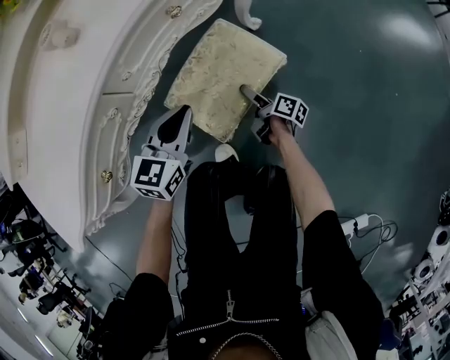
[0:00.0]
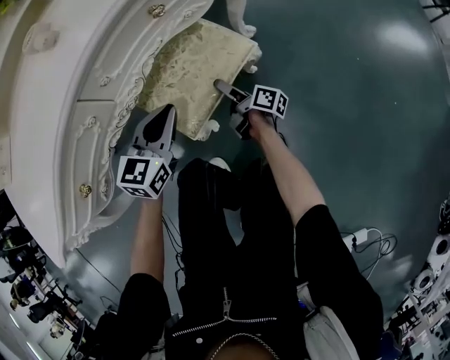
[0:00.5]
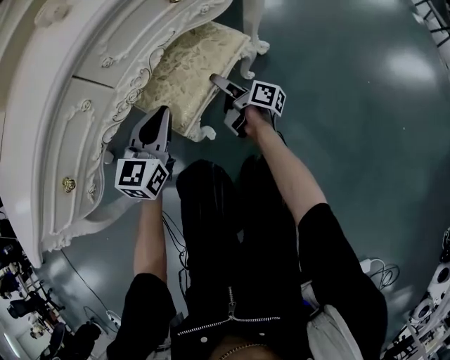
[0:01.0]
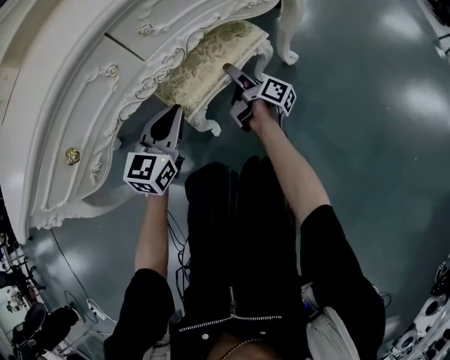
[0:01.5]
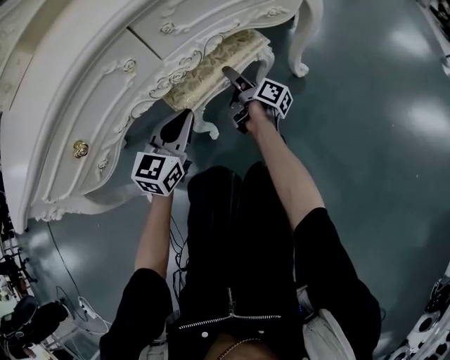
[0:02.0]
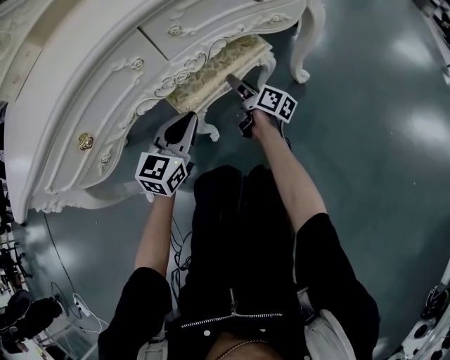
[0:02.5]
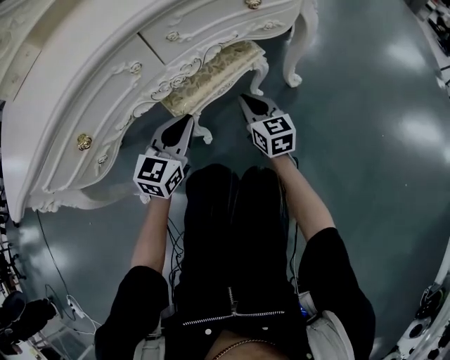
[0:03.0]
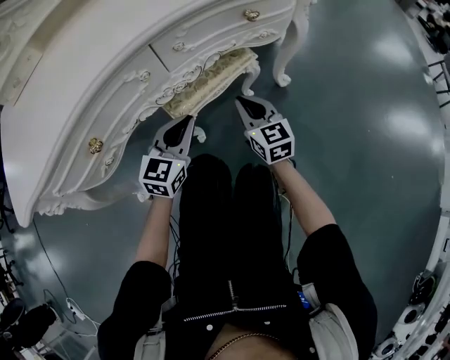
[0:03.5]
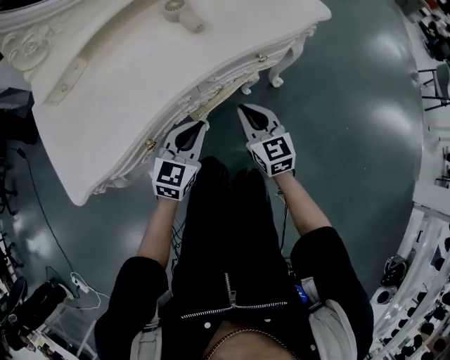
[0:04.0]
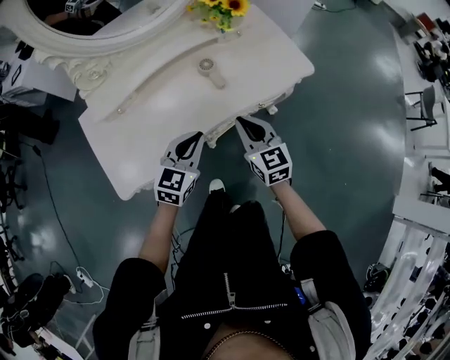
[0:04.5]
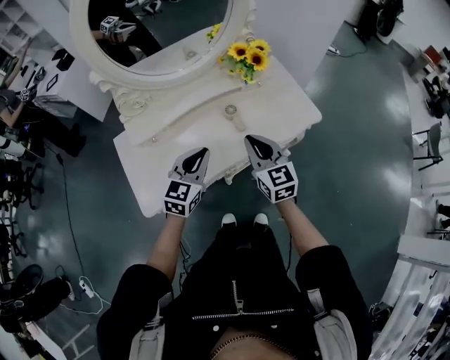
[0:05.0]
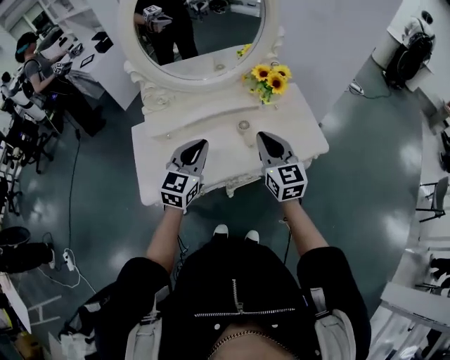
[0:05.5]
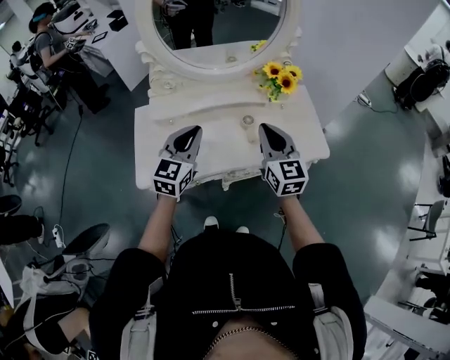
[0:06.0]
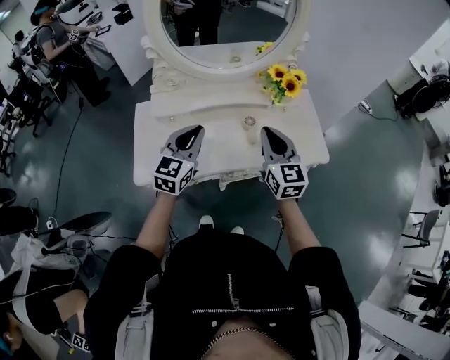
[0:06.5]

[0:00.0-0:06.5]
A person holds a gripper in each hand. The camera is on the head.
0:00.0 to 0:02.0: The left gripper shifts approximately 15 cm downward and to the left, and swivels about 20 degrees. Meanwhile the right gripper moves forward and to the left, about 25 cm, and turns by about 20 degrees.
0:02.0 to 0:04.5: The two grippers go approximately 40 cm upward. The right gripper rolls counterclockwise, seen from behind, by roughly 80 degrees, and closes up.
0:04.5 to 0:06.5: The left gripper shifts roughly 20 cm upward and to the left, and changes its angle by some 30 degrees. The right gripper is displaced upward and forward by approximately 20 cm.

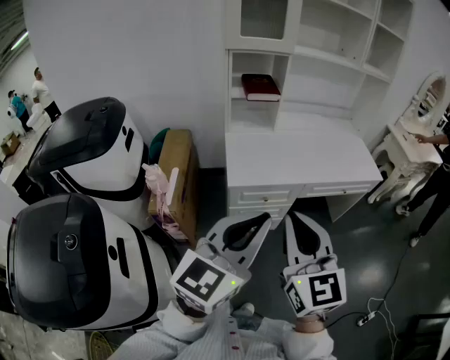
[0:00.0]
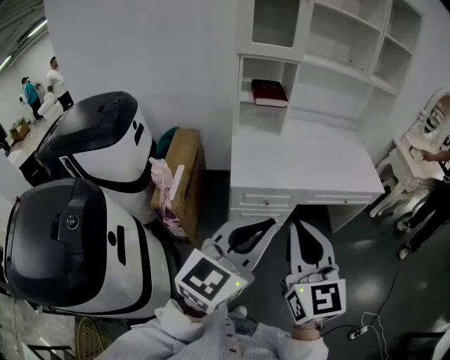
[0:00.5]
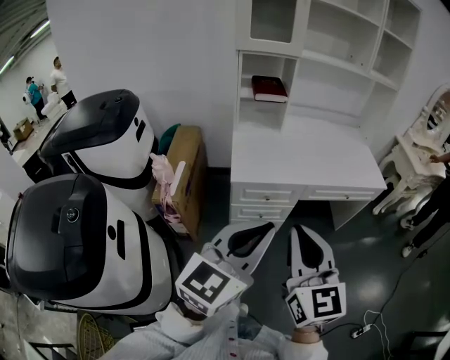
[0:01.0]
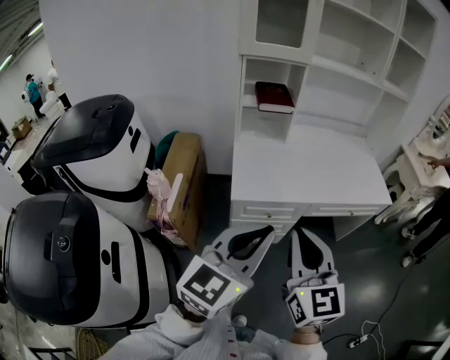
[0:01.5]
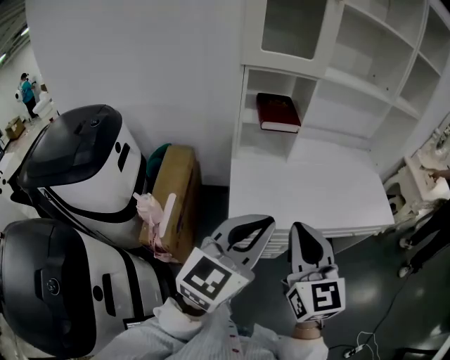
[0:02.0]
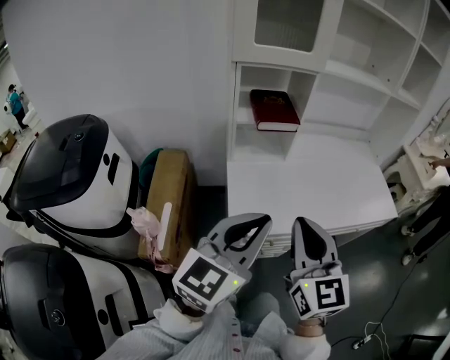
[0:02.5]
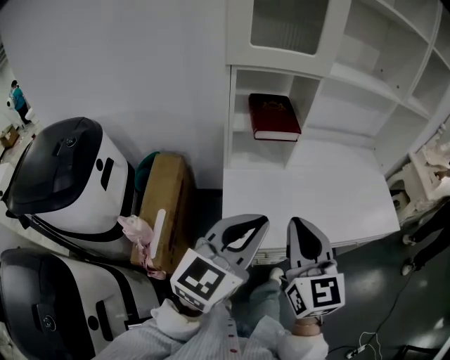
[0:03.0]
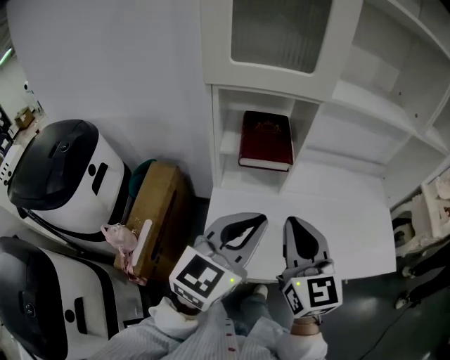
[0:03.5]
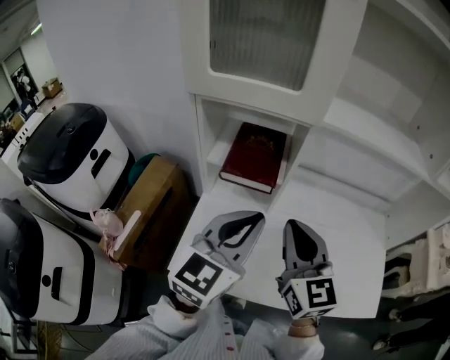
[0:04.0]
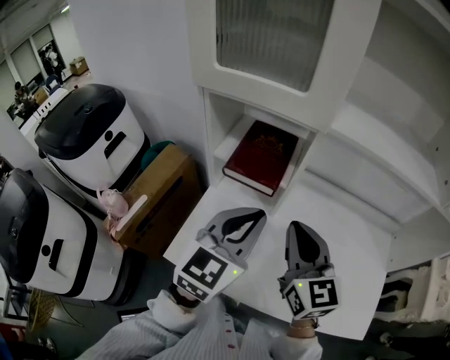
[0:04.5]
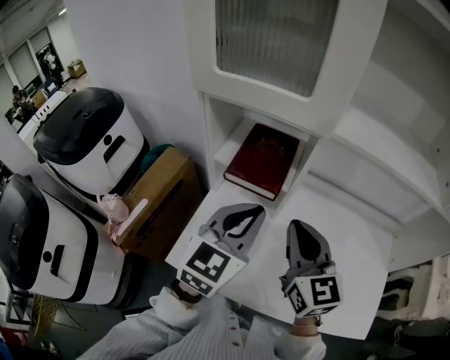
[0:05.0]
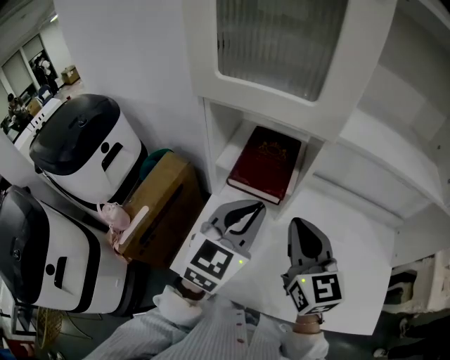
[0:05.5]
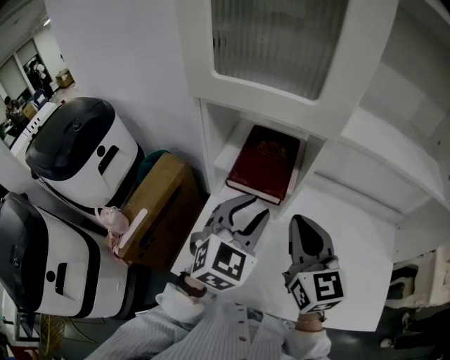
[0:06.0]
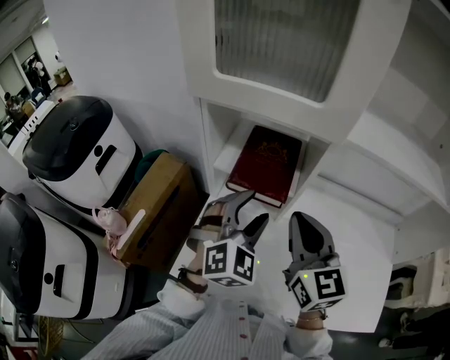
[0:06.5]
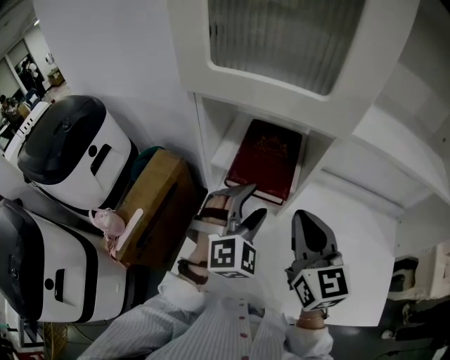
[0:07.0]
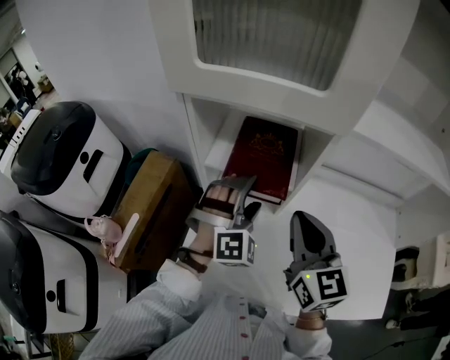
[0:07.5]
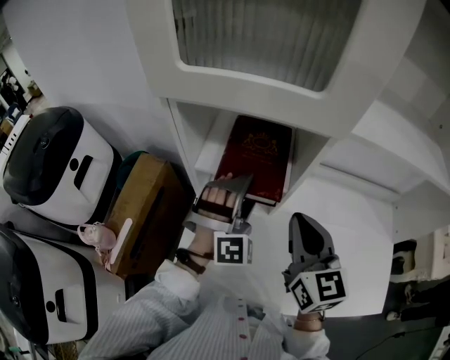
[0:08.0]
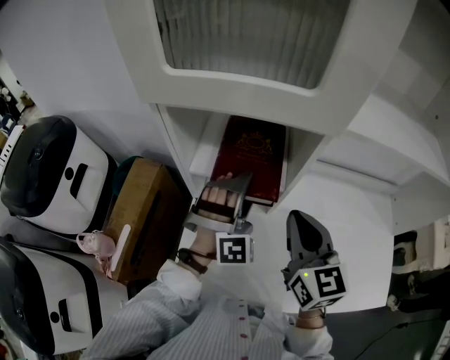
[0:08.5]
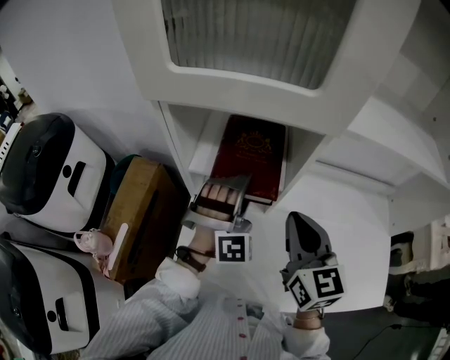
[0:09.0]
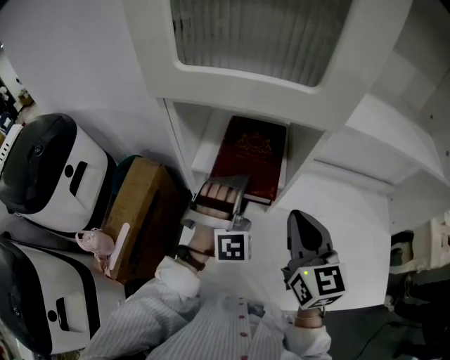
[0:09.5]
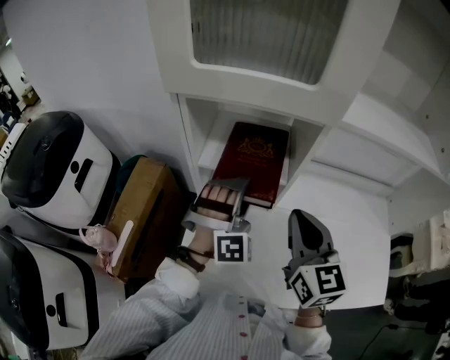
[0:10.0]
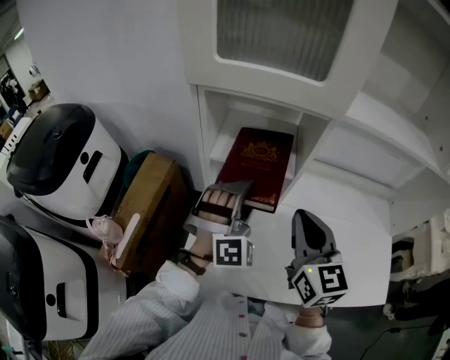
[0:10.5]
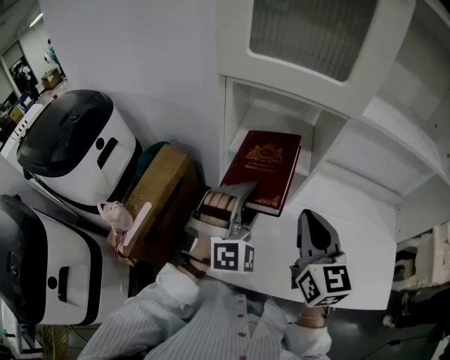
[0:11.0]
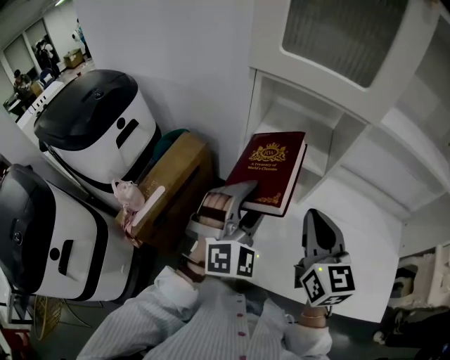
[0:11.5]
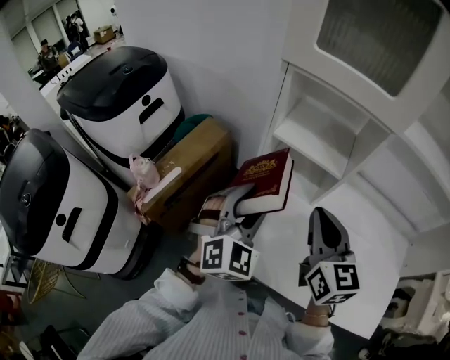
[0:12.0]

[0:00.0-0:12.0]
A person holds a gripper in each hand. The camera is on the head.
0:00.0 to 0:02.0: Both grippers travel together forward, approximately 20 cm.
0:02.0 to 0:04.0: Both grippers travel together forward, roughly 35 cm.
0:04.0 to 0:06.0: The left gripper shifts about 10 cm forward and downward, and rotates about 30 degrees; the right gripper shifts about 5 cm forward.
0:06.0 to 0:08.0: The left gripper moves forward and downward, roughly 15 cm, twists approximately 50 degrees clockwise, seen from behind, and opens.
0:08.0 to 0:10.0: The grippers make only small movements.
0:10.0 to 0:12.0: The right gripper travels to the left and backward by approximately 10 cm. The left gripper moves backward and to the left, some 20 cm, and swivels approximately 40 degrees.

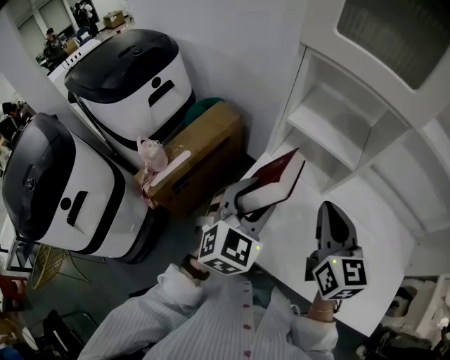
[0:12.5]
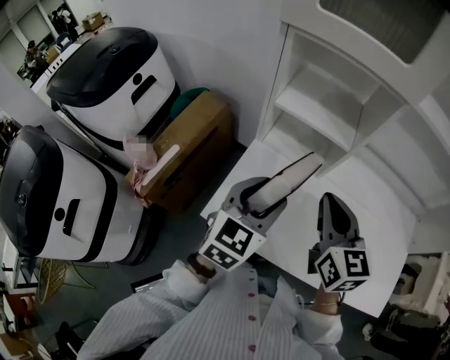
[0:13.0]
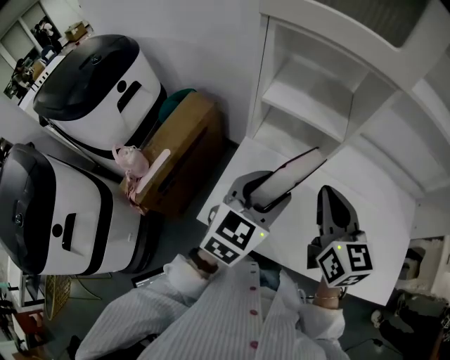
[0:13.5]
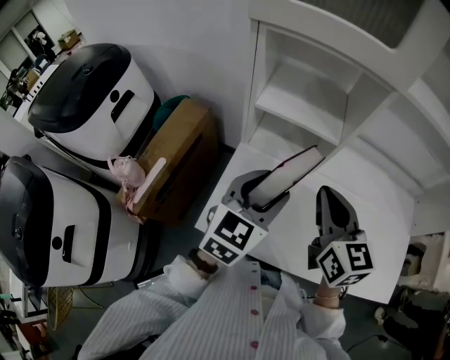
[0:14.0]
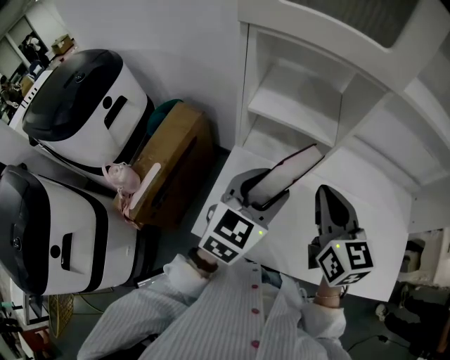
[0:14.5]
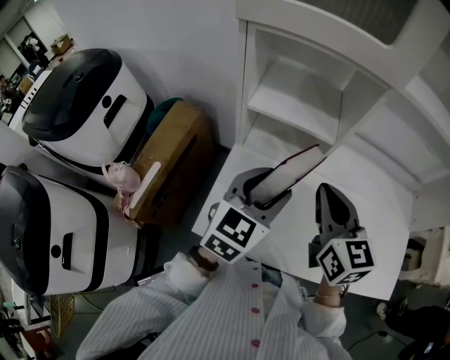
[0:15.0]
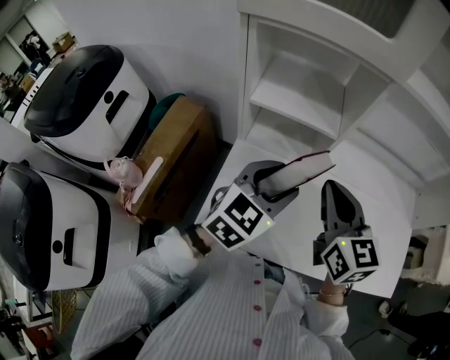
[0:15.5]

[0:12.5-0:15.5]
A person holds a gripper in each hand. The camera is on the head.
0:12.5 to 0:14.0: The left gripper moves to the right, approximately 5 cm, and changes its angle by approximately 30 degrees.
0:14.0 to 0:15.5: There are only small adjustments of the grippers.

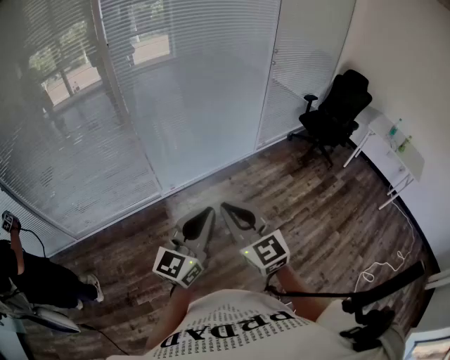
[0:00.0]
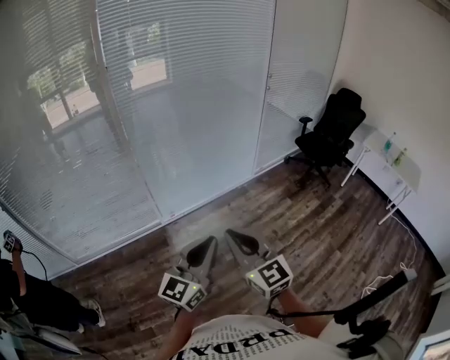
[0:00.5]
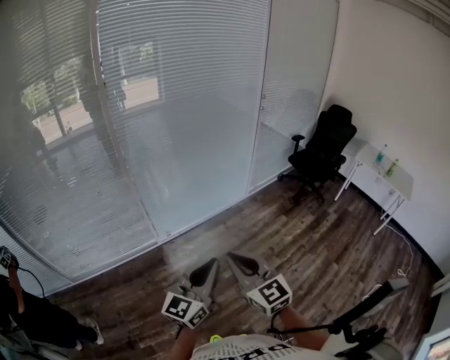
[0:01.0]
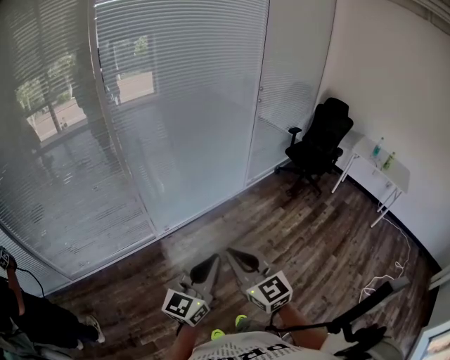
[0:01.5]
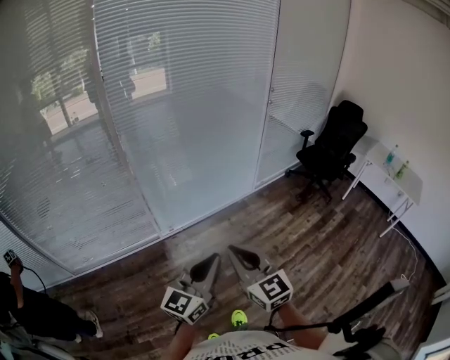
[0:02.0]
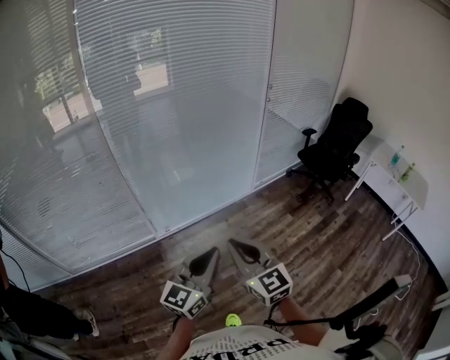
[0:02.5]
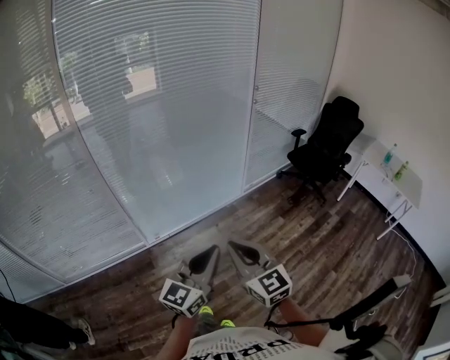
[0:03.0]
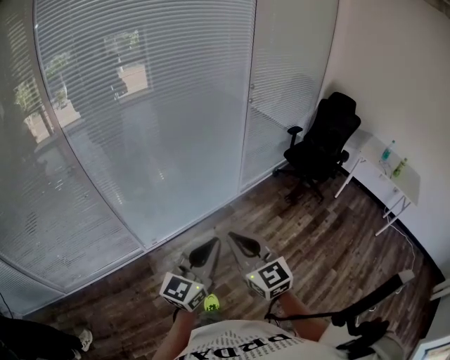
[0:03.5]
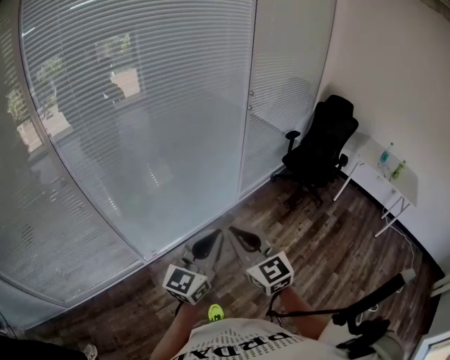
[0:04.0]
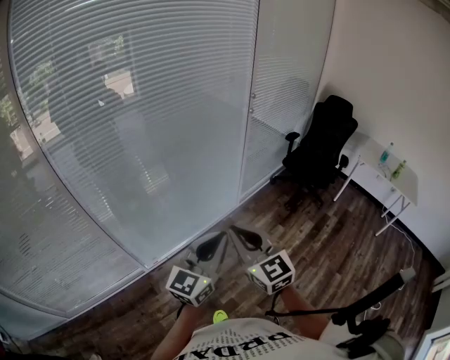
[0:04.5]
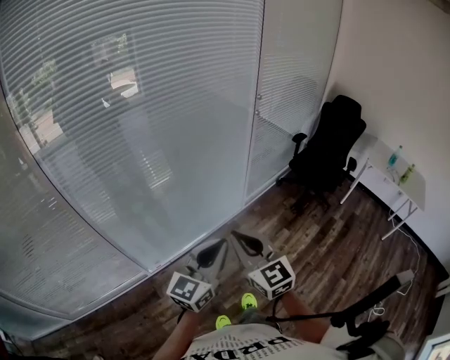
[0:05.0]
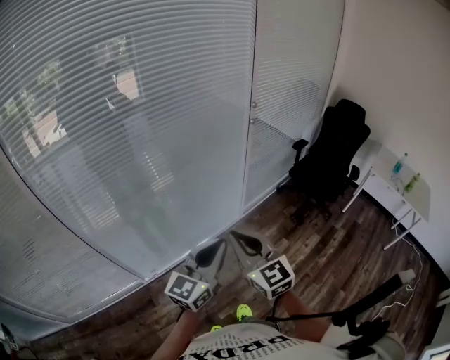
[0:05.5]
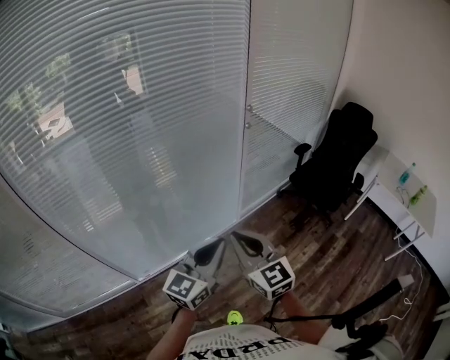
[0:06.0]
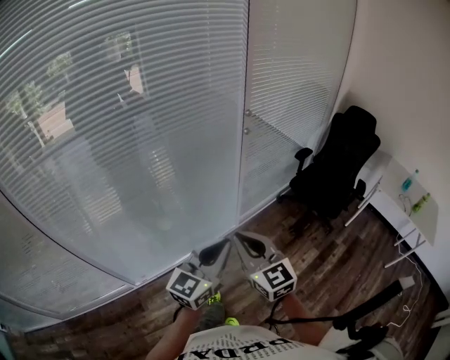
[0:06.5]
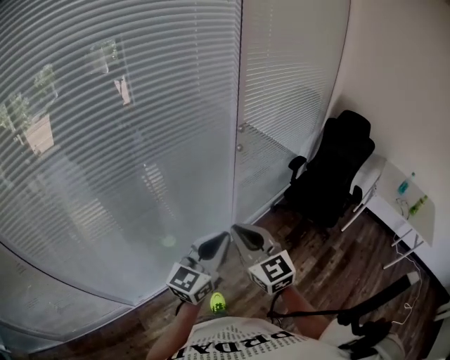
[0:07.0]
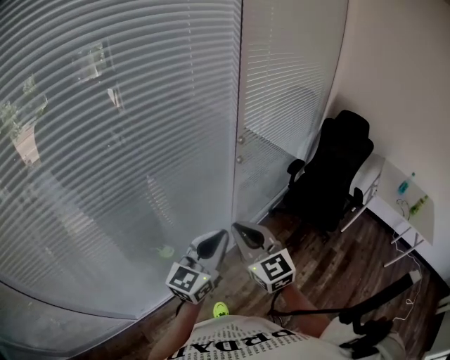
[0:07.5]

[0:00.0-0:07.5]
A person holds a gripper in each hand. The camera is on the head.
0:00.0 to 0:02.0: The two grippers go about 5 cm forward.
0:02.0 to 0:04.0: The two grippers go roughly 30 cm forward.
0:04.0 to 0:05.5: The grippers both shift forward by approximately 25 cm.
0:05.5 to 0:07.5: Both grippers travel together forward, roughly 30 cm.
